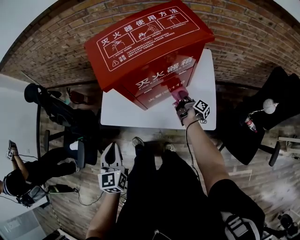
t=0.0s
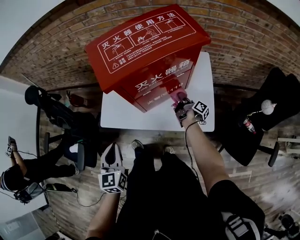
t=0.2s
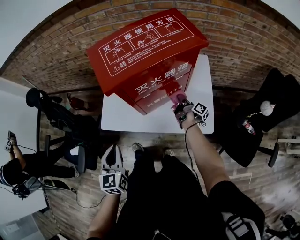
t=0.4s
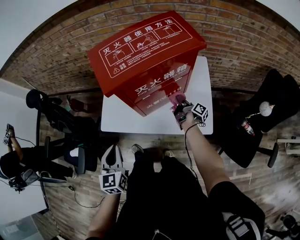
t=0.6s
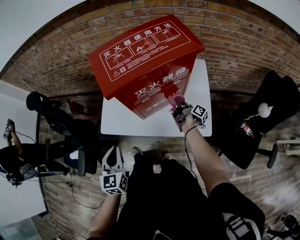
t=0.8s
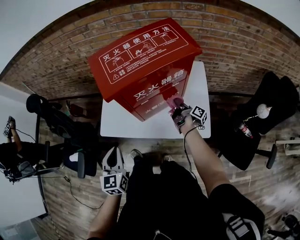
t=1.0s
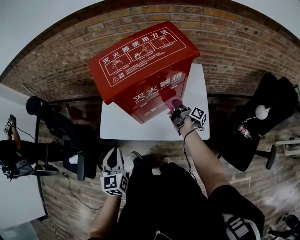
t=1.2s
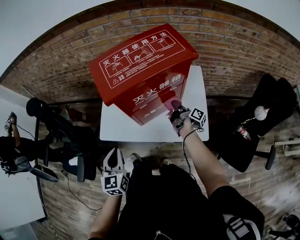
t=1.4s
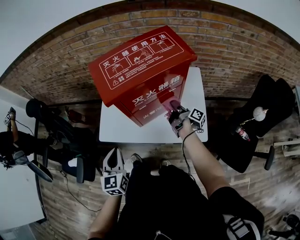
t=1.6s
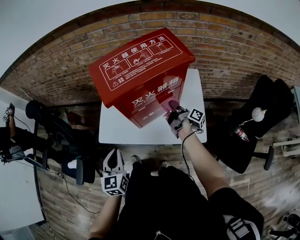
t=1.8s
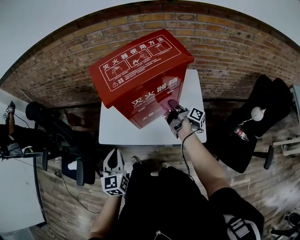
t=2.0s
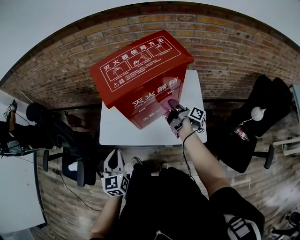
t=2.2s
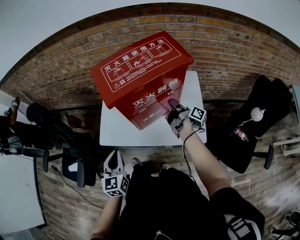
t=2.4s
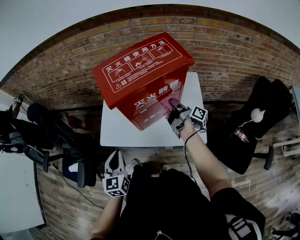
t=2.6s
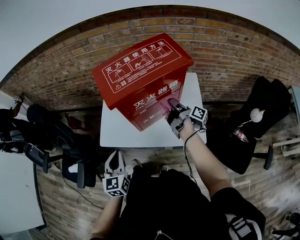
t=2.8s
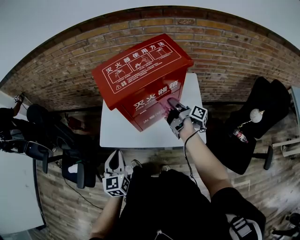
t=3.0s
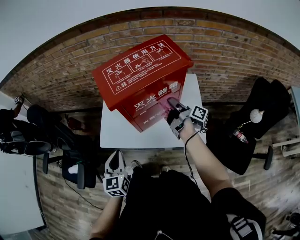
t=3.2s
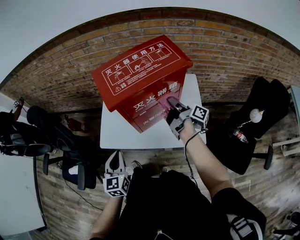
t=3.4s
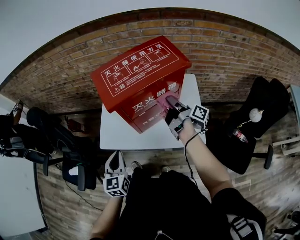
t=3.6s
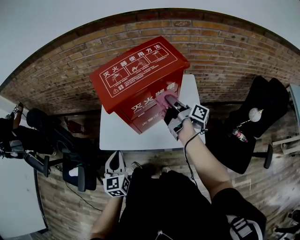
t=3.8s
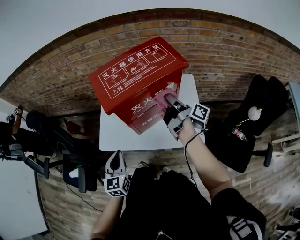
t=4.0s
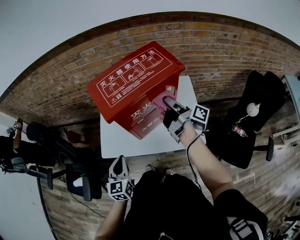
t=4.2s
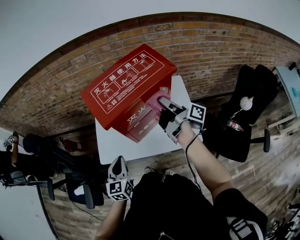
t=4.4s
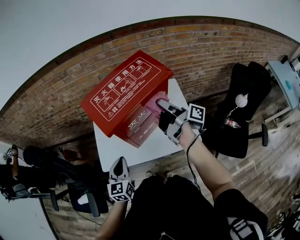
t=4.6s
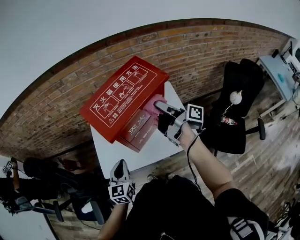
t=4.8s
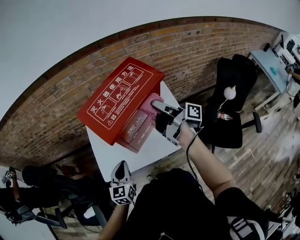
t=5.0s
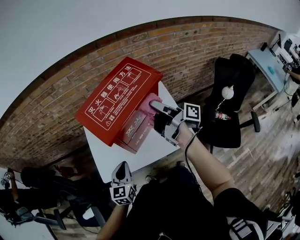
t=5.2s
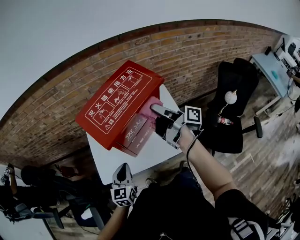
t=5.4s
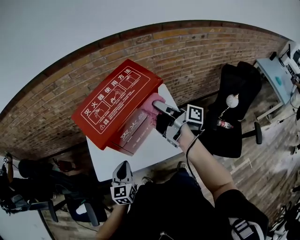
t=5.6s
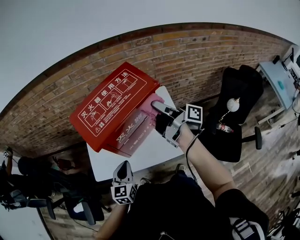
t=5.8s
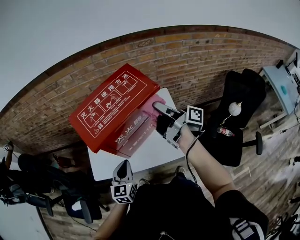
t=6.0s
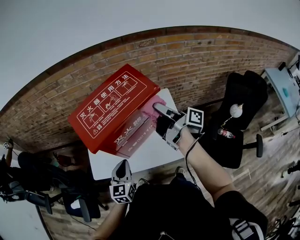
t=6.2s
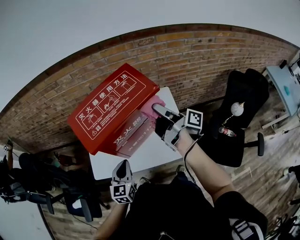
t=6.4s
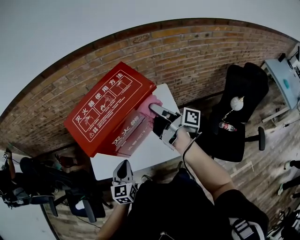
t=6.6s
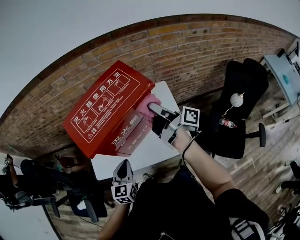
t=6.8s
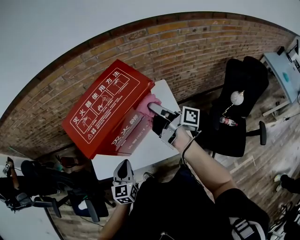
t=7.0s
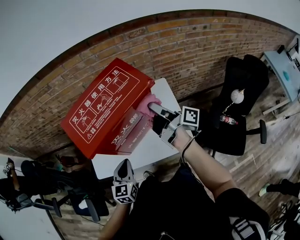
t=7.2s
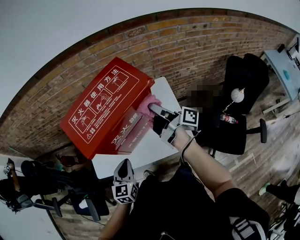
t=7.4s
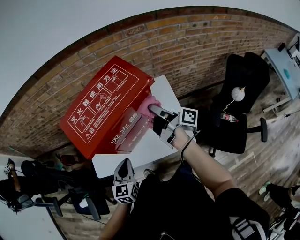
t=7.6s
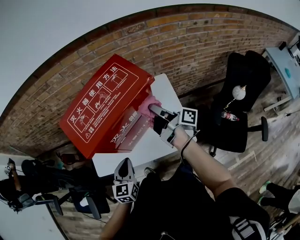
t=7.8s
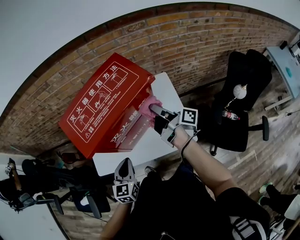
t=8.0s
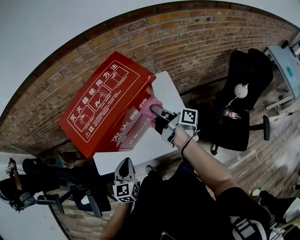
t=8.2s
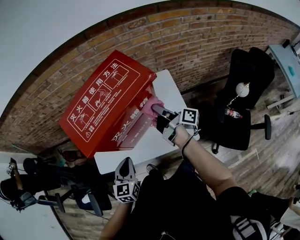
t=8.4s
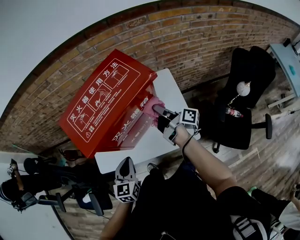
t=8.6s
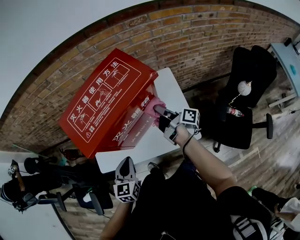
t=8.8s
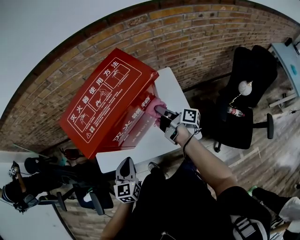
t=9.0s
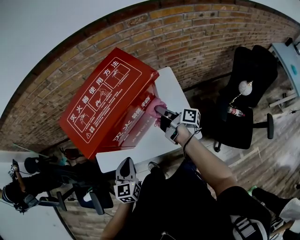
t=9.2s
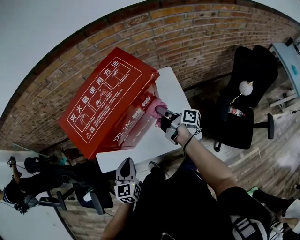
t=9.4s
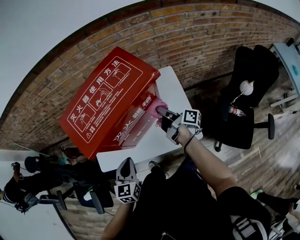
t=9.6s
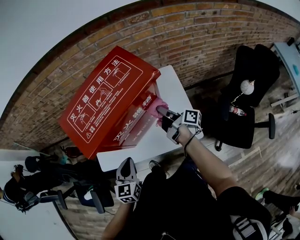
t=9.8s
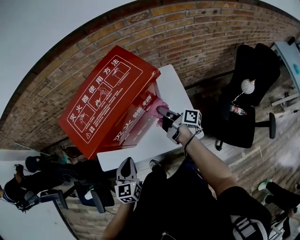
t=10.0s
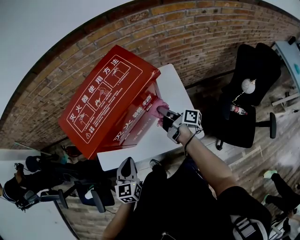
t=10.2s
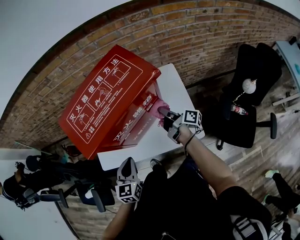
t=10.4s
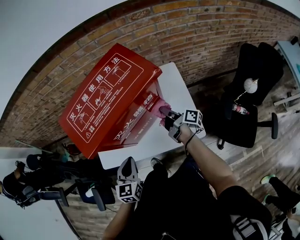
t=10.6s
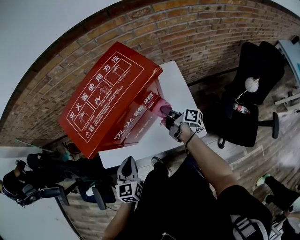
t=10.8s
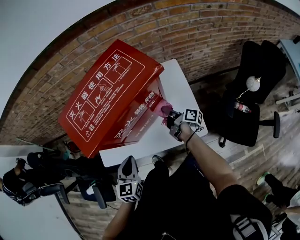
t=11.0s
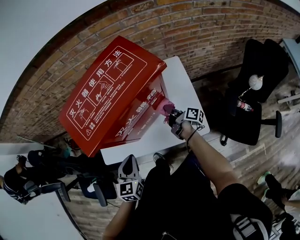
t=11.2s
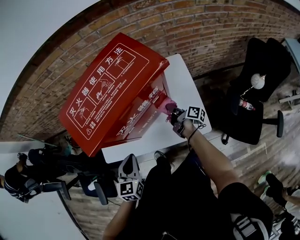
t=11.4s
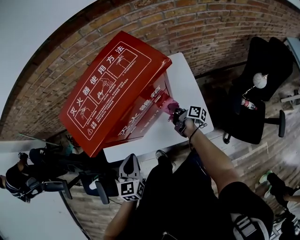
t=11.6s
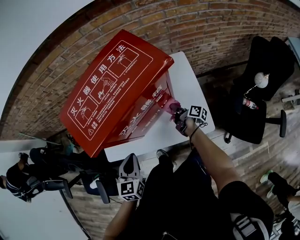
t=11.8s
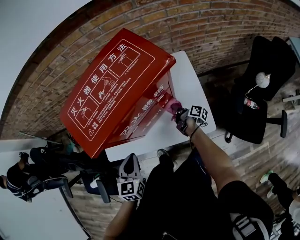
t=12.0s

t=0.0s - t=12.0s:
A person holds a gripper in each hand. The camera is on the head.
t=4.4s - t=6.0s: The left gripper shifts by approximately 10 cm.

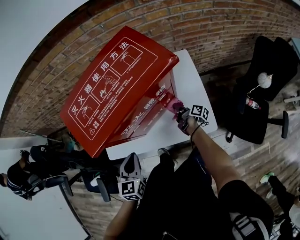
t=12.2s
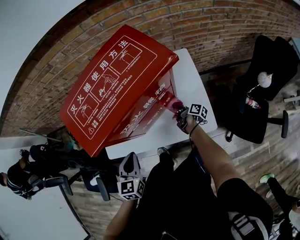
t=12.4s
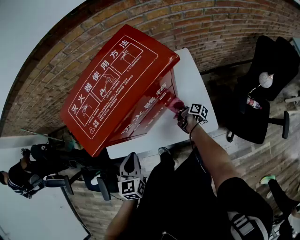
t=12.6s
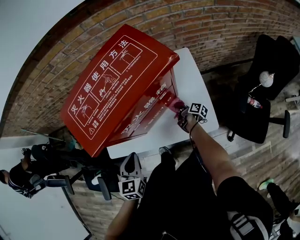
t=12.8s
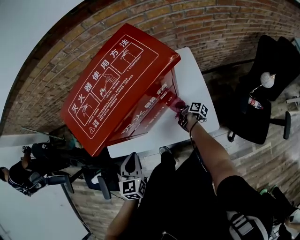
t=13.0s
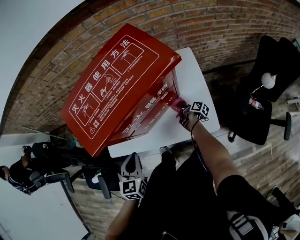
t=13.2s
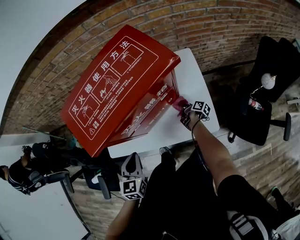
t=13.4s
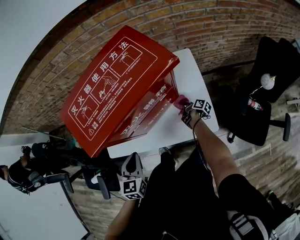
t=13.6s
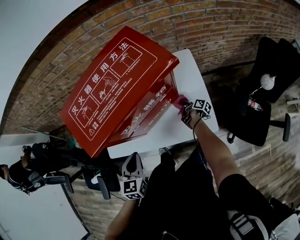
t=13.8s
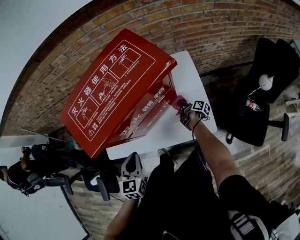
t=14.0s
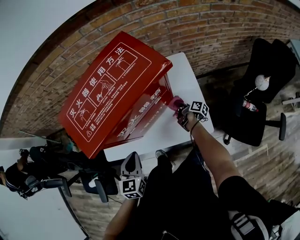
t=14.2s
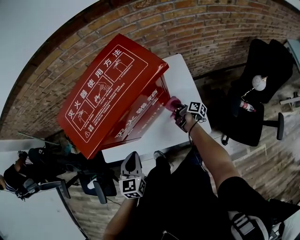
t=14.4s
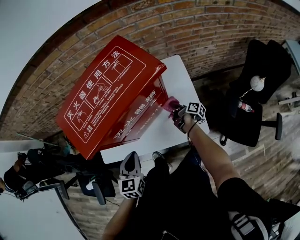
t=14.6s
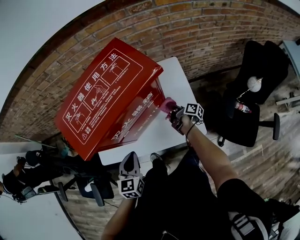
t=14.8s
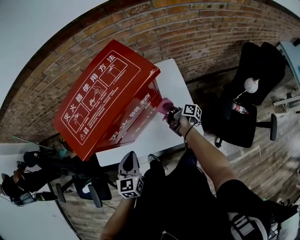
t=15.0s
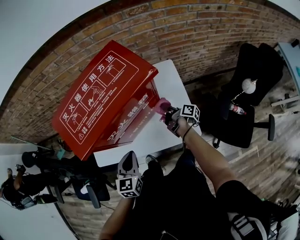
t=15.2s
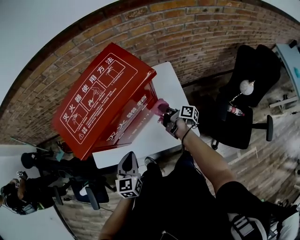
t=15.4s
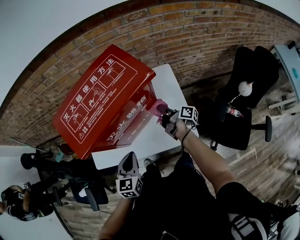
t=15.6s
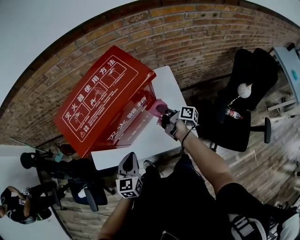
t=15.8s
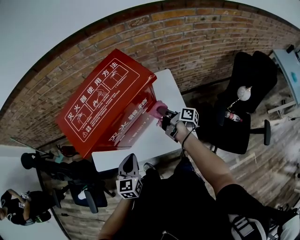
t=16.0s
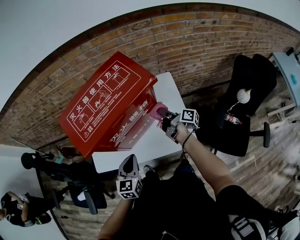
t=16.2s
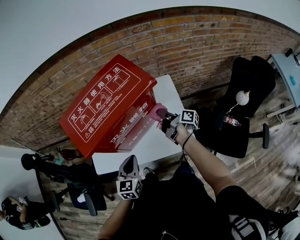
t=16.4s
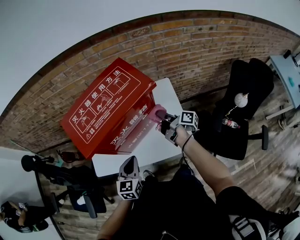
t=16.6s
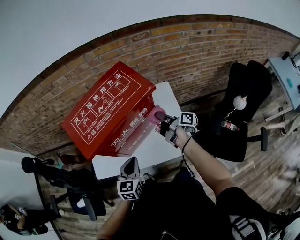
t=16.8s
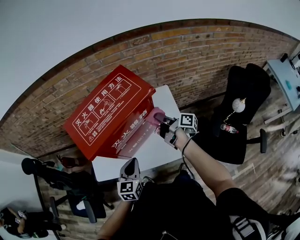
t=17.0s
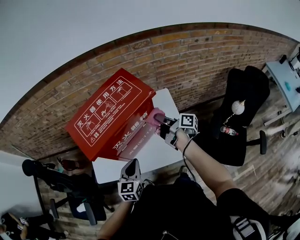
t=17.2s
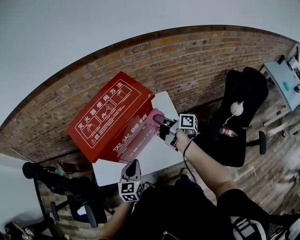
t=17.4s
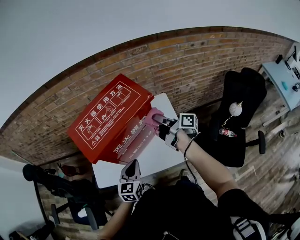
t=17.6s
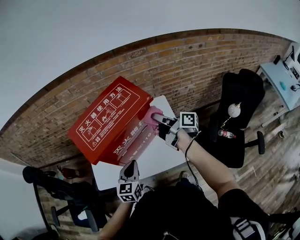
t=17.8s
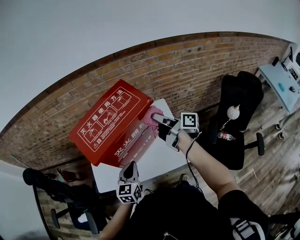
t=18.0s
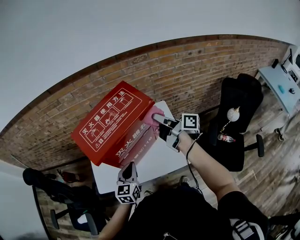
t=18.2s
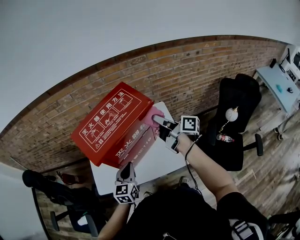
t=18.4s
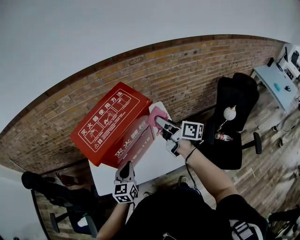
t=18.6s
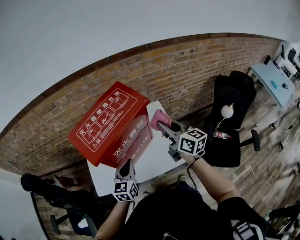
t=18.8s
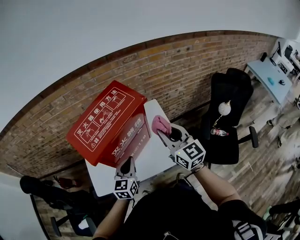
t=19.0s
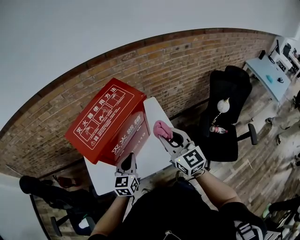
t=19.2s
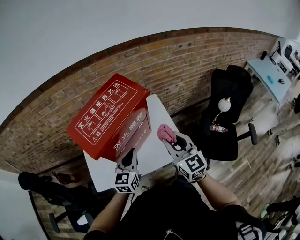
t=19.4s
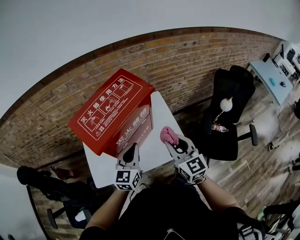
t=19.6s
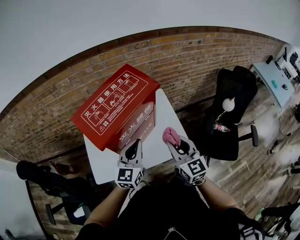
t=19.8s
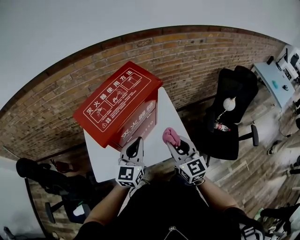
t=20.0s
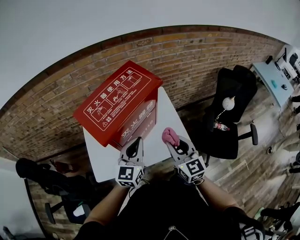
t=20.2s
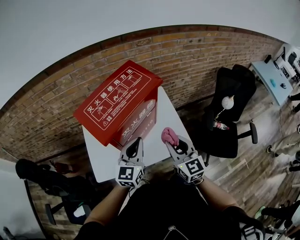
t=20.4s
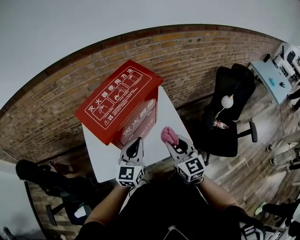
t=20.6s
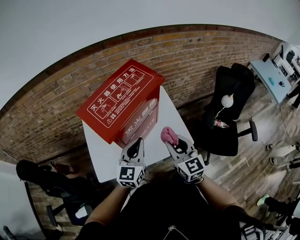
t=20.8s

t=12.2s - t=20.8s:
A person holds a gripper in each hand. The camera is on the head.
t=13.6s - t=15.0s: The left gripper ends up approximately 5 cm from where it was.
t=19.4s - t=20.8s: The left gripper ends up about 5 cm from where it was.

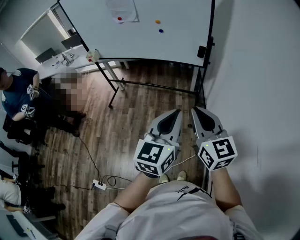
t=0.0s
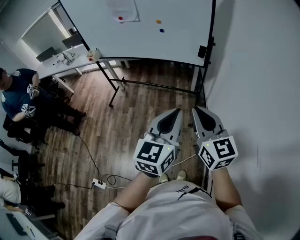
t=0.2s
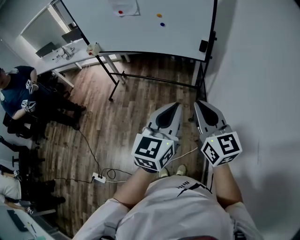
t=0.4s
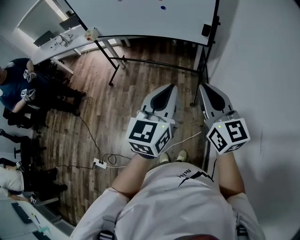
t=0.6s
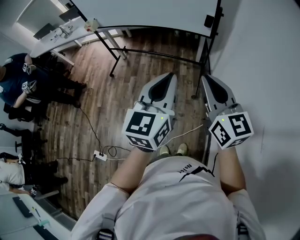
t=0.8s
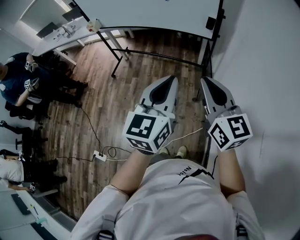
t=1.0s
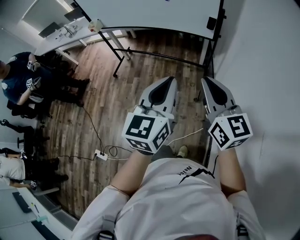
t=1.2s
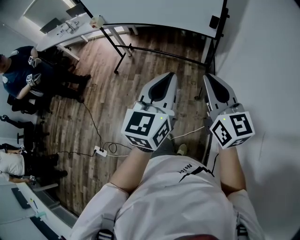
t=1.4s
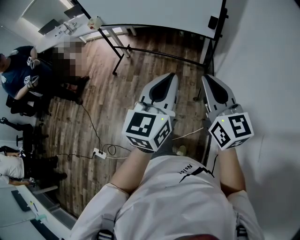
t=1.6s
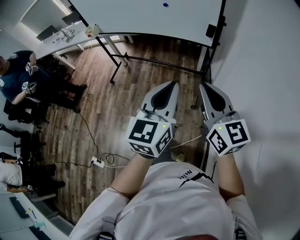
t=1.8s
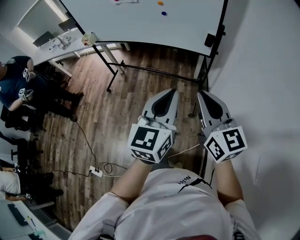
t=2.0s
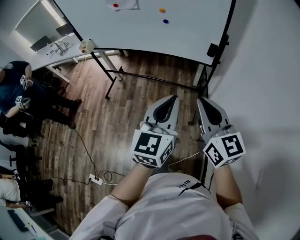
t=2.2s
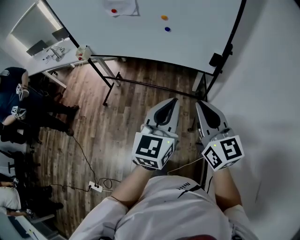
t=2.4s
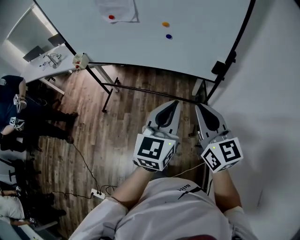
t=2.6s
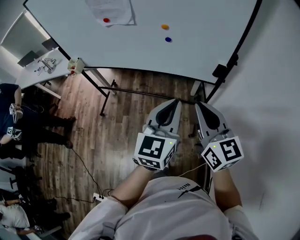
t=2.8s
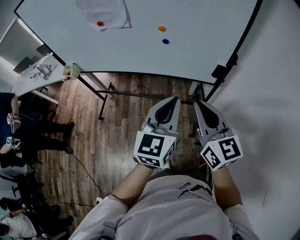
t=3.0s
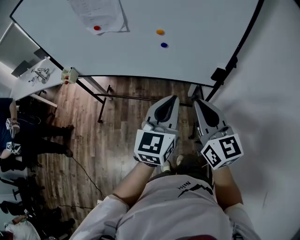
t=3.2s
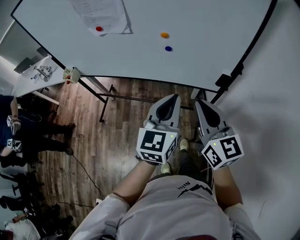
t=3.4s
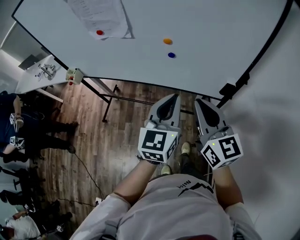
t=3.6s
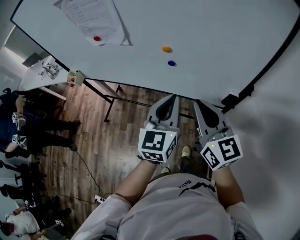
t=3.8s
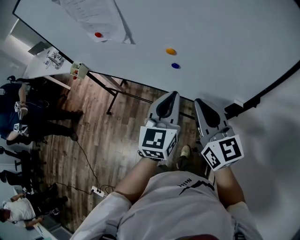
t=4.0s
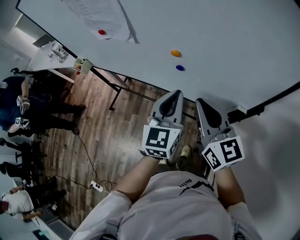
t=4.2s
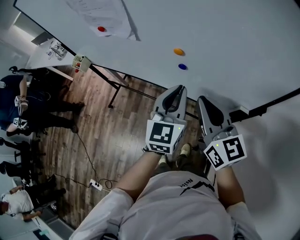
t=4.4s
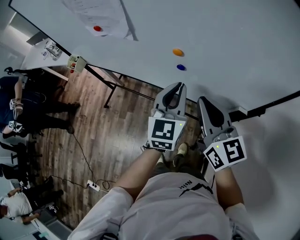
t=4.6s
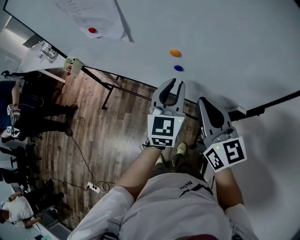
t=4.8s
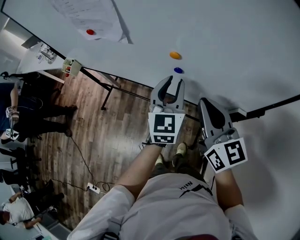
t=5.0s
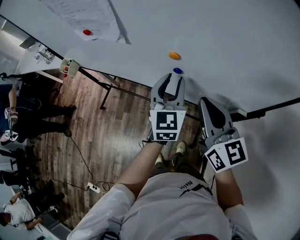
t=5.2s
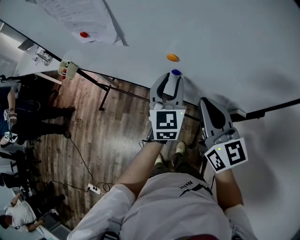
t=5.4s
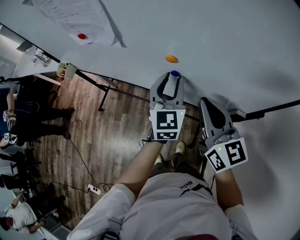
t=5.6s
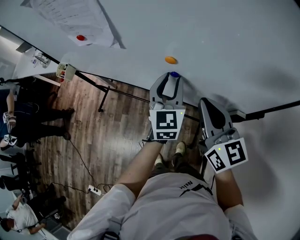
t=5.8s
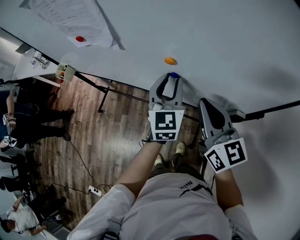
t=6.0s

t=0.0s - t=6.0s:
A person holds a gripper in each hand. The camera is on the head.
t=0.0s - t=1.6s: The grippers stay close to where they were, moving slightly.
t=1.6s - t=3.0s: The two grippers go roughly 30 cm forward.
t=3.0s - t=4.4s: The two grippers go some 25 cm forward.
t=4.4s - t=6.0s: The left gripper shifts approximately 10 cm forward, and opens its fingers.
